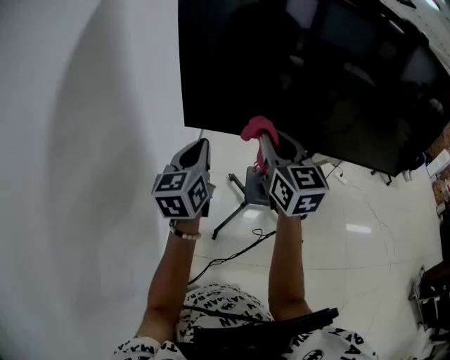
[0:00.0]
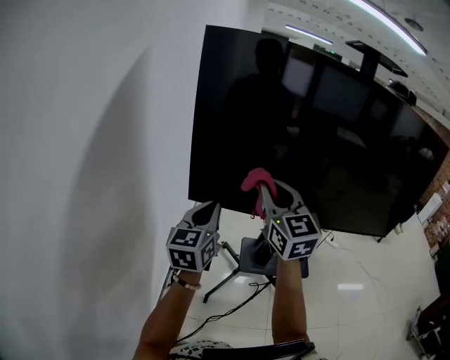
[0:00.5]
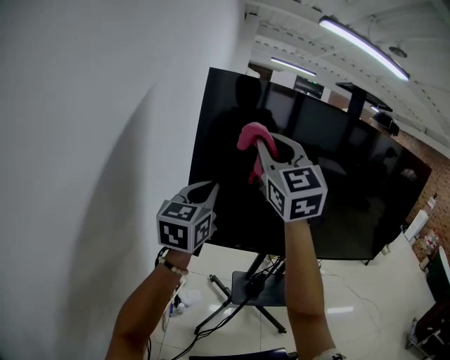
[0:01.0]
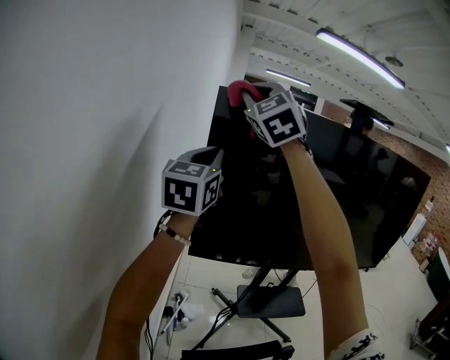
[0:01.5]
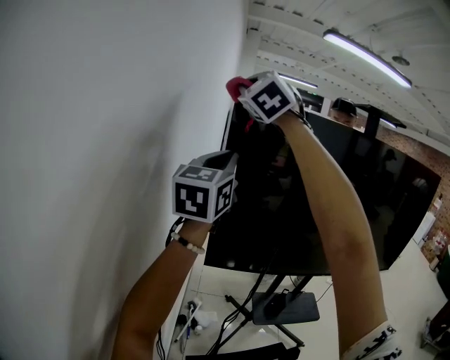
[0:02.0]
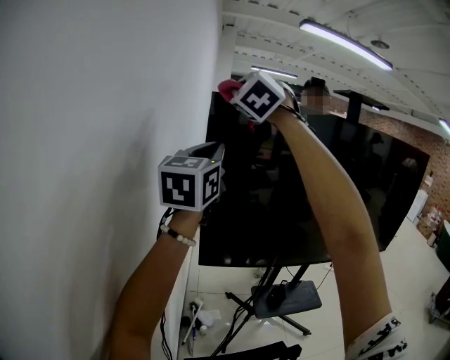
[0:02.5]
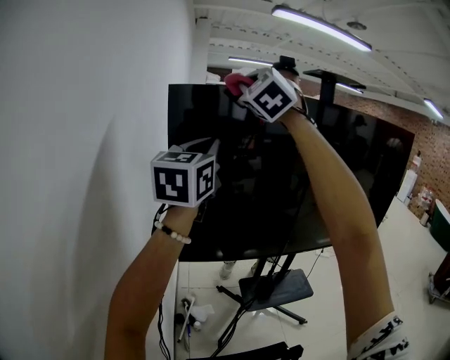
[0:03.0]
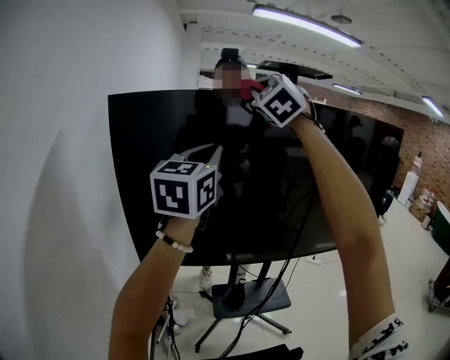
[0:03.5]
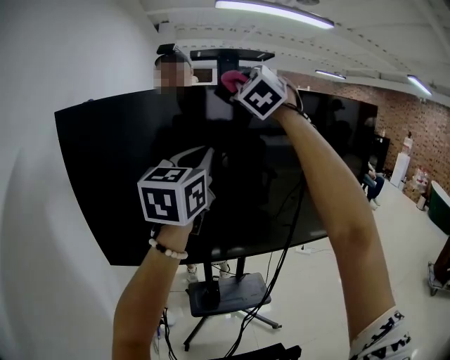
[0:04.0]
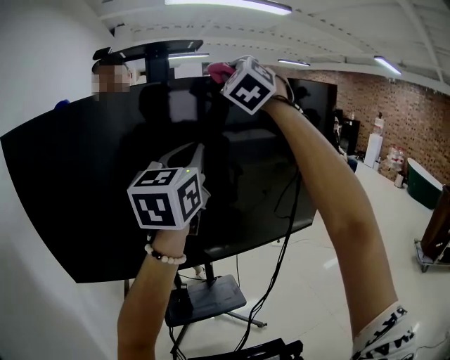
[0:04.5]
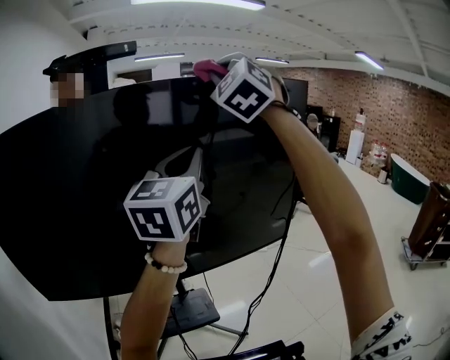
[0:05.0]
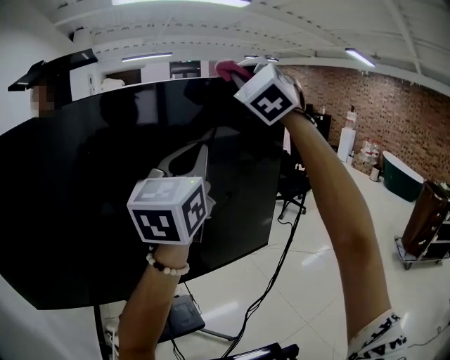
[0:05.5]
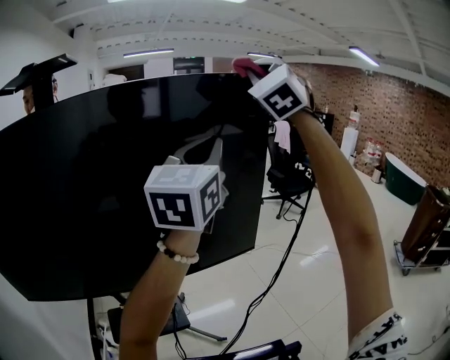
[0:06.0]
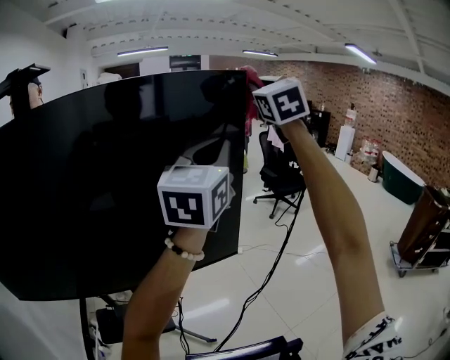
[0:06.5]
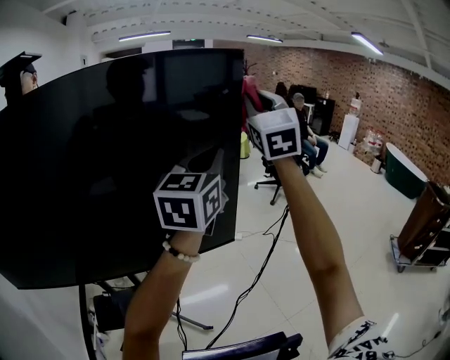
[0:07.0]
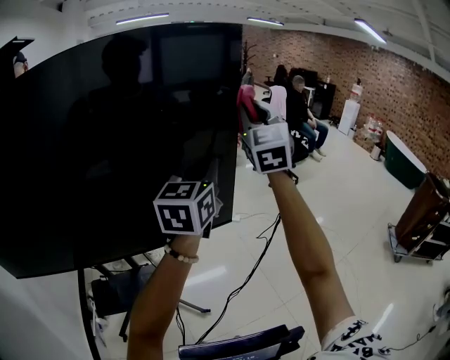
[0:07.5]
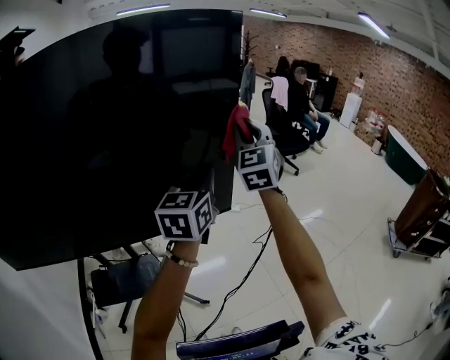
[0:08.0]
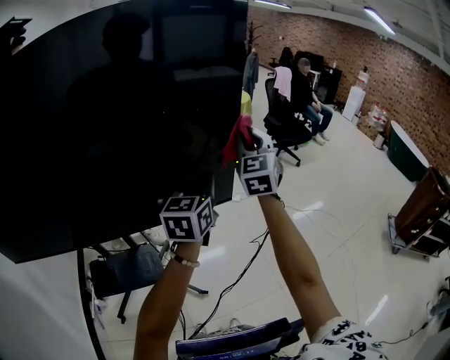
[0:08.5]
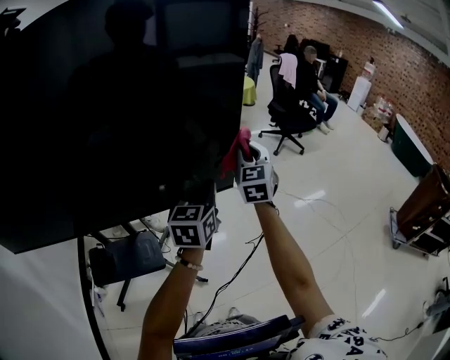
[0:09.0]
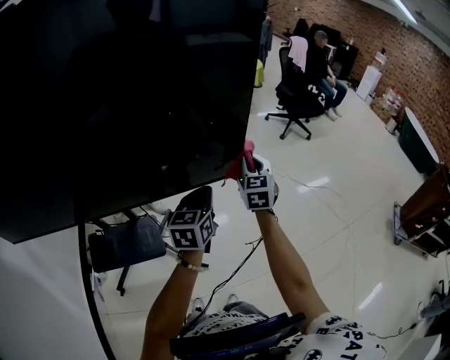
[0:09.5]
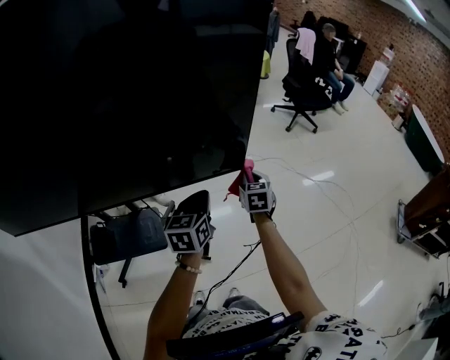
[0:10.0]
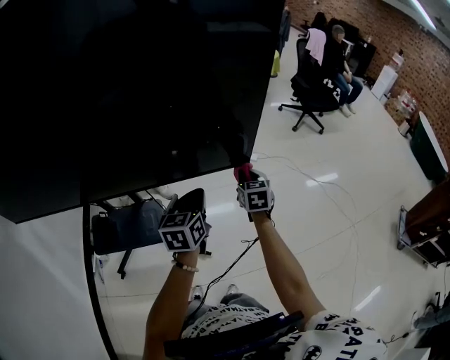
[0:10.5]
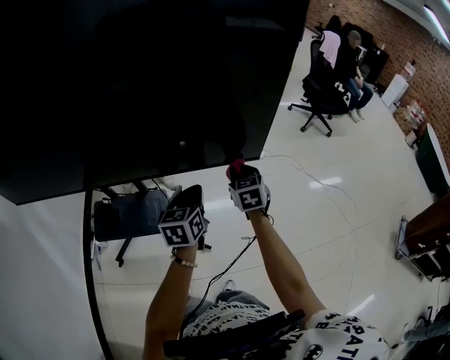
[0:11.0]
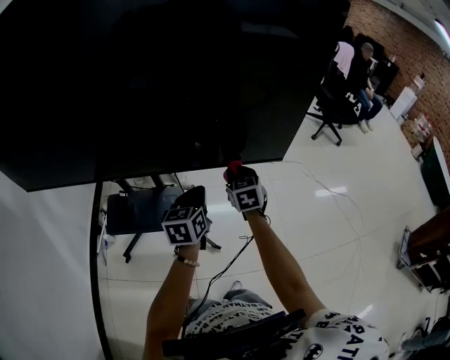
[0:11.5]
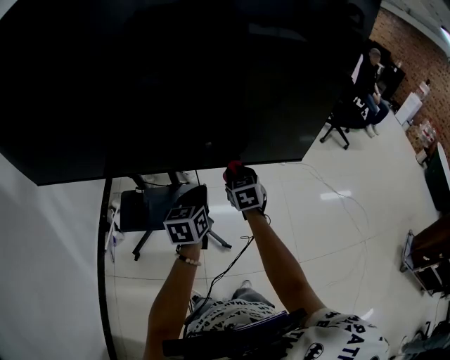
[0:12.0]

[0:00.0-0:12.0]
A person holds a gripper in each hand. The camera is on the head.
0:00.0 to 0:02.0: The right gripper travels upward, to the left and forward by approximately 50 cm, and twists about 50 degrees counterclockwise, seen from behind. Meanwhile the left gripper moves upward, some 30 cm, and changes its angle by about 20 degrees.
0:02.0 to 0:04.0: The two grippers travel together, to the right, approximately 50 cm.
0:04.0 to 0:06.0: The two grippers travel together, to the right and forward, approximately 50 cm.
0:06.0 to 0:08.0: The two grippers go approximately 25 cm downward. The right gripper changes its angle by about 30 degrees.
0:08.0 to 0:10.0: The left gripper shifts approximately 25 cm downward, and swivels about 20 degrees, while the right gripper goes approximately 40 cm downward, and tips its fingers downward by some 40 degrees.
0:10.0 to 0:12.0: Both grippers travel together to the left, about 25 cm. The right gripper swivels roughly 20 degrees.

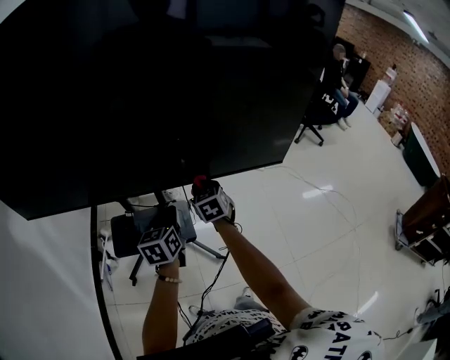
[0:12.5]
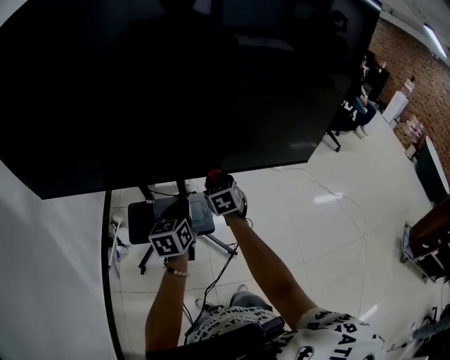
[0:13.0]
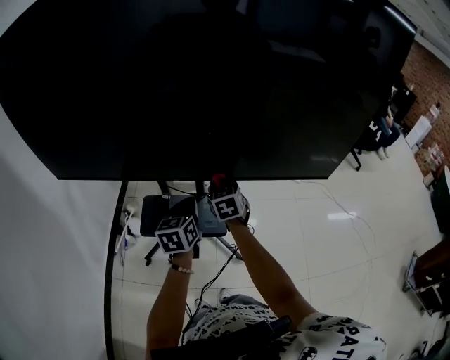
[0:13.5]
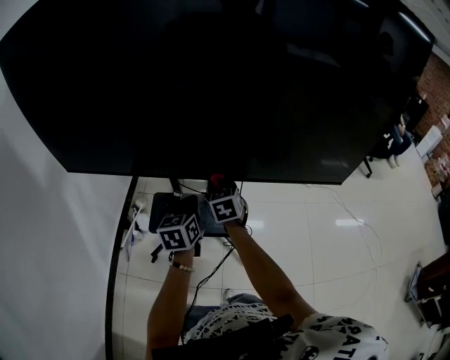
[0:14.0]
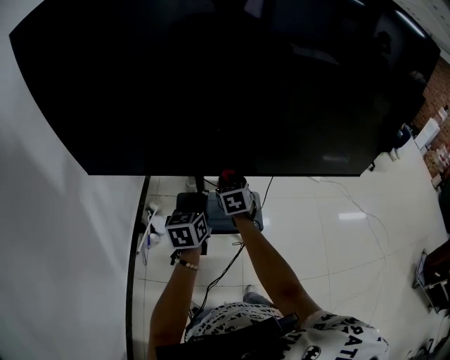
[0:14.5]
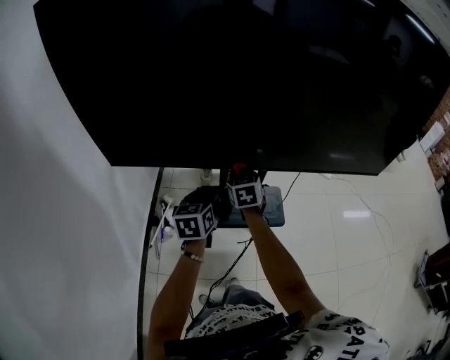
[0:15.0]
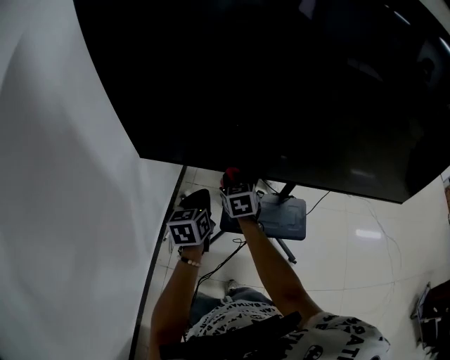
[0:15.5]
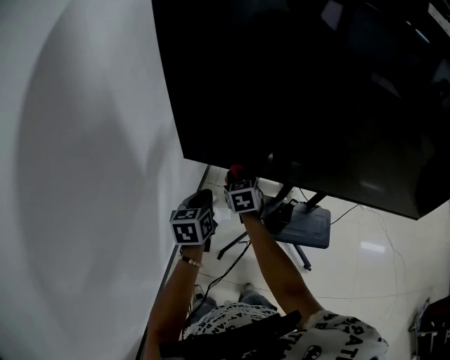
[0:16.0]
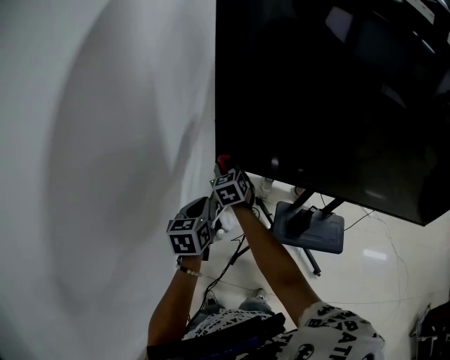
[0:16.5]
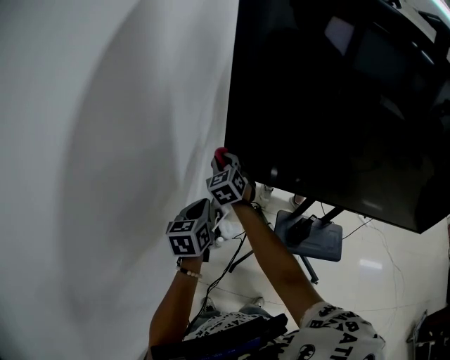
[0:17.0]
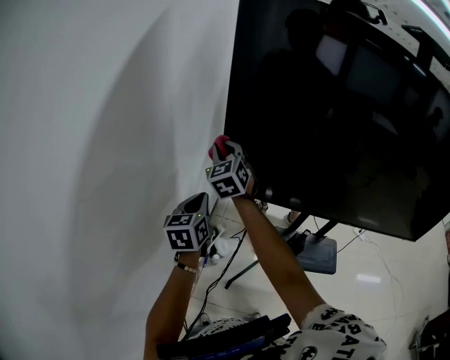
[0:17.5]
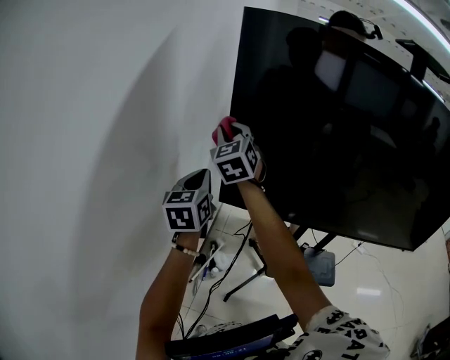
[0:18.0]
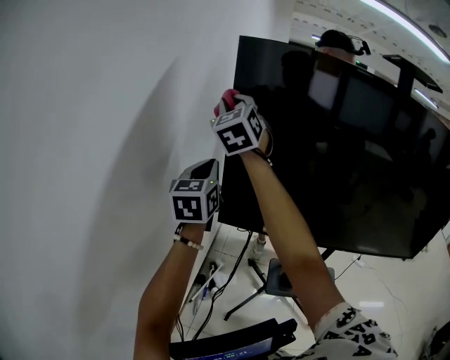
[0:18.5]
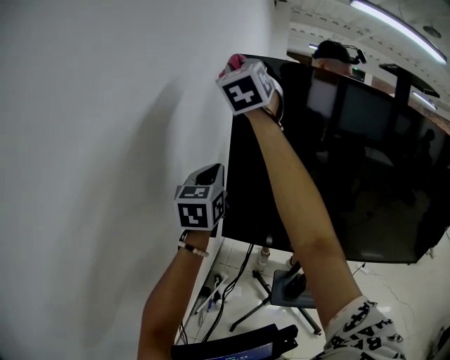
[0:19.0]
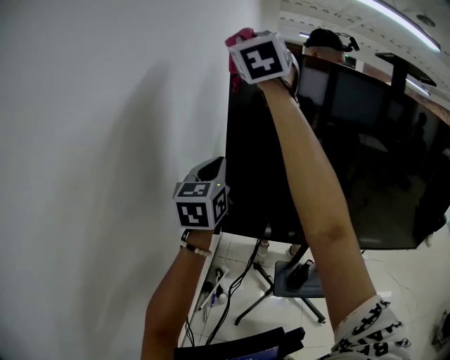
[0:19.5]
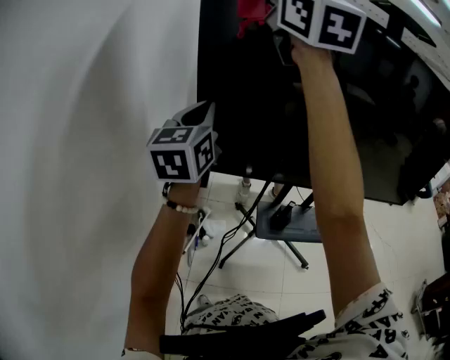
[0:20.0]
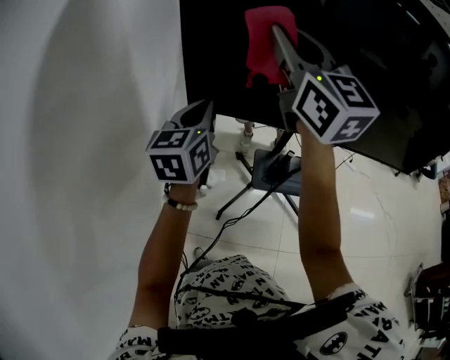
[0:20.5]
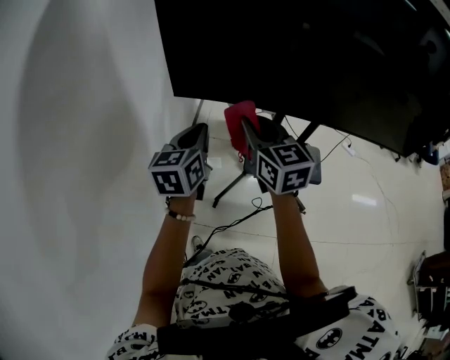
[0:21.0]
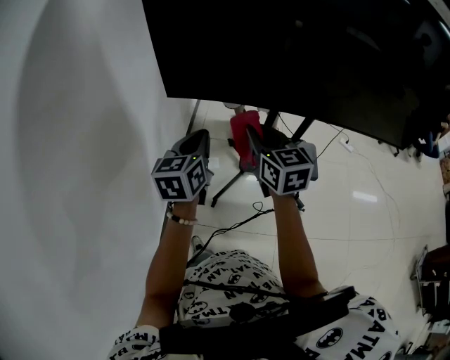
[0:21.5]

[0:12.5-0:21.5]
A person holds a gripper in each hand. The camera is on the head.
0:12.5 to 0:14.5: Both grippers travel together to the left, about 25 cm.
0:14.5 to 0:17.0: The two grippers travel together, to the left, approximately 50 cm. The right gripper swivels about 40 degrees.
0:17.0 to 0:19.5: The left gripper is displaced upward by some 35 cm, and changes its angle by about 30 degrees. Meanwhile the right gripper heads upward, covering about 60 cm, and points its fingers roughly 40 degrees further upward.
0:19.5 to 0:21.5: The right gripper is displaced downward and to the right by some 60 cm, and turns by some 50 degrees; the left gripper goes approximately 35 cm downward, backward and to the right, and swivels roughly 30 degrees.

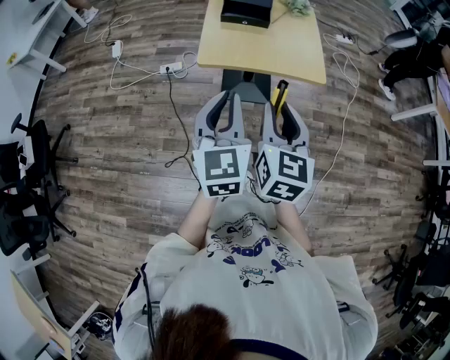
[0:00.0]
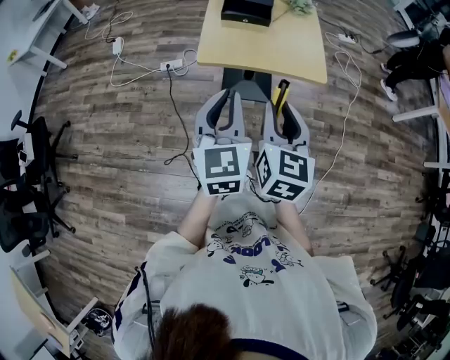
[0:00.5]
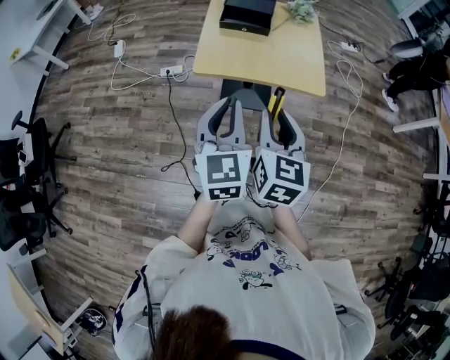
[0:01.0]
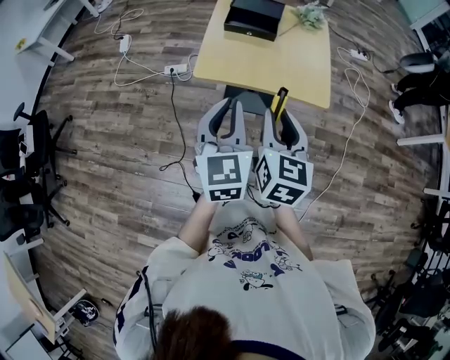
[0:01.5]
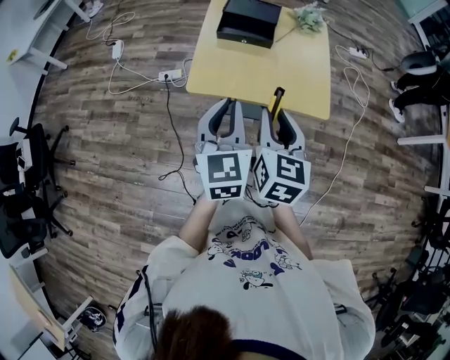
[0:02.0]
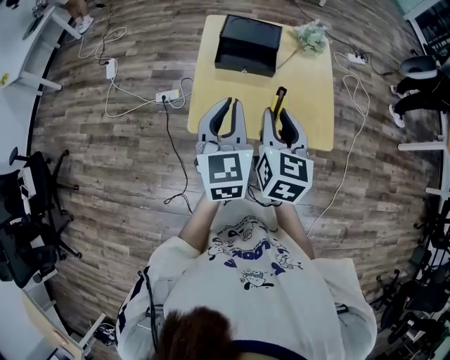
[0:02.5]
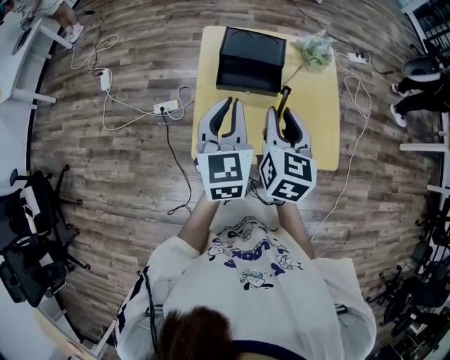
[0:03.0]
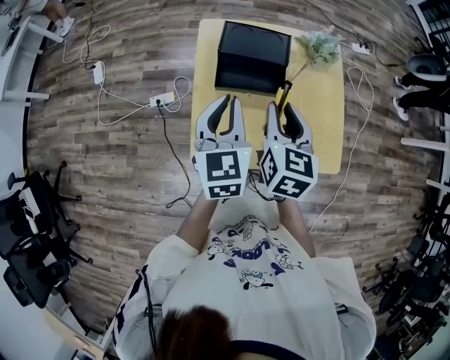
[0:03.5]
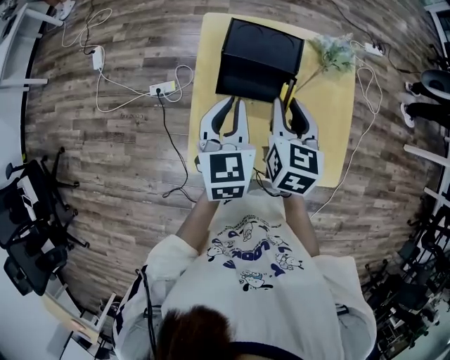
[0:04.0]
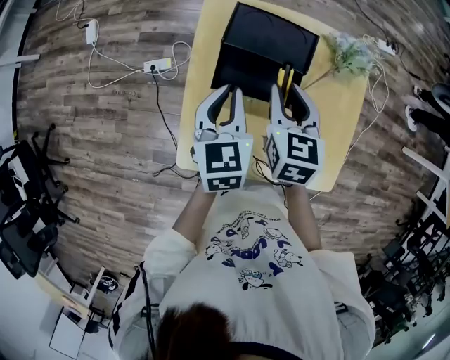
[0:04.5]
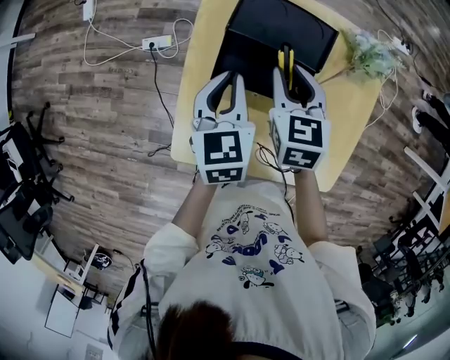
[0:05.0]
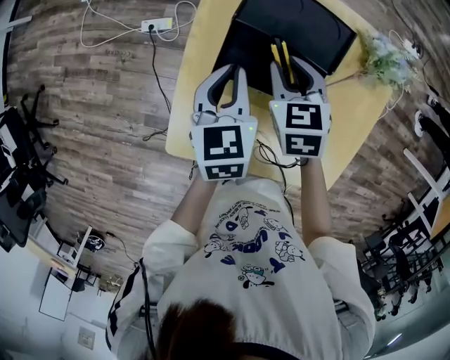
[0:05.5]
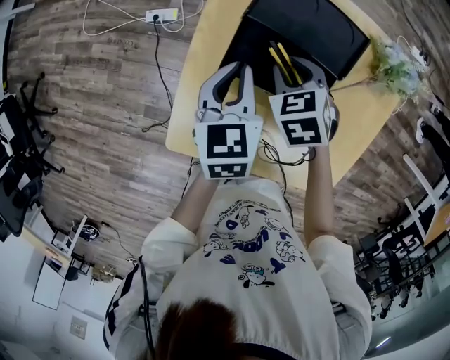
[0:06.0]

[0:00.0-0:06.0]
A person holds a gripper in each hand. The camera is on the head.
0:00.0 to 0:02.0: The two grippers go roughly 15 cm forward.
0:02.0 to 0:04.0: The grippers both shift forward by approximately 35 cm.
0:04.0 to 0:06.0: The two grippers go roughly 20 cm downward and forward. The left gripper changes its angle by about 20 degrees. Meanwhile the right gripper tips its fingers downward by roughly 30 degrees.
